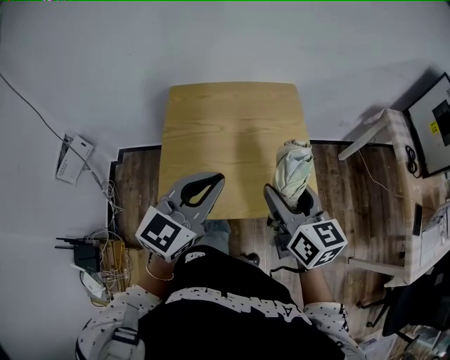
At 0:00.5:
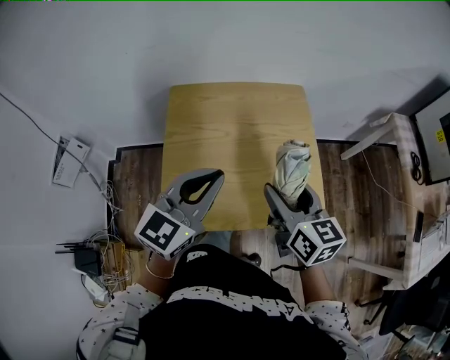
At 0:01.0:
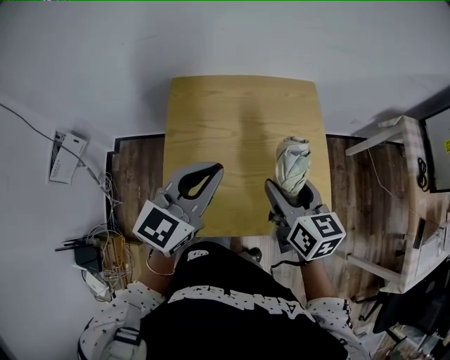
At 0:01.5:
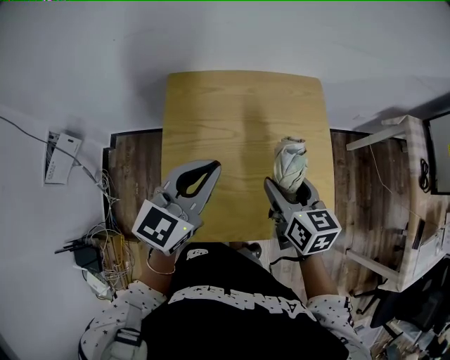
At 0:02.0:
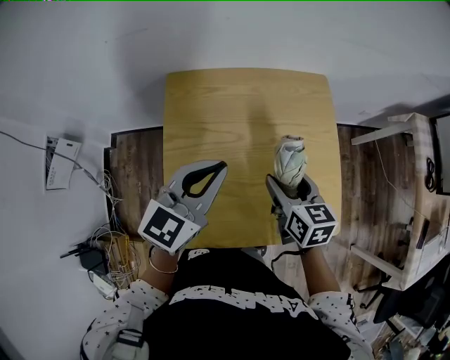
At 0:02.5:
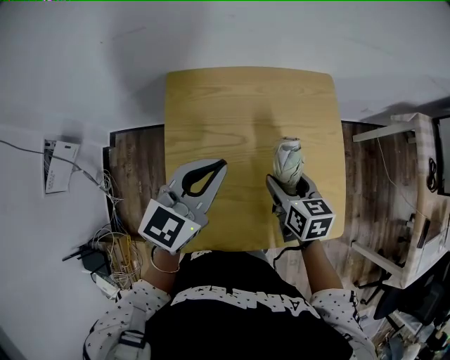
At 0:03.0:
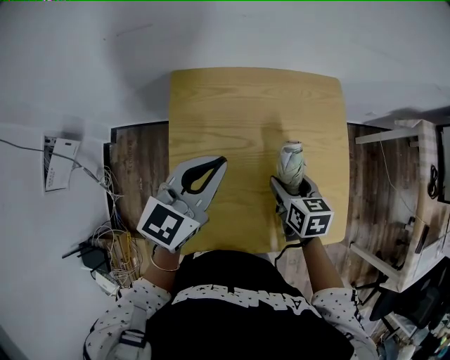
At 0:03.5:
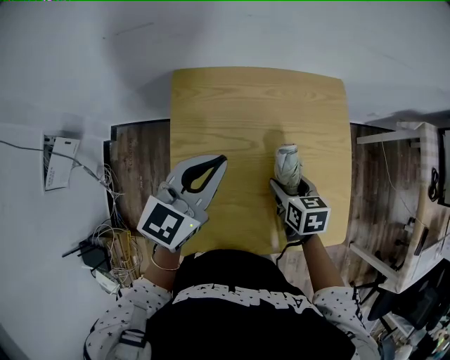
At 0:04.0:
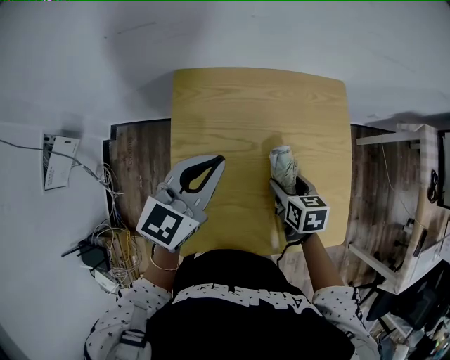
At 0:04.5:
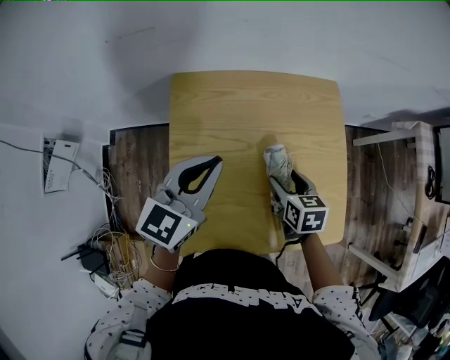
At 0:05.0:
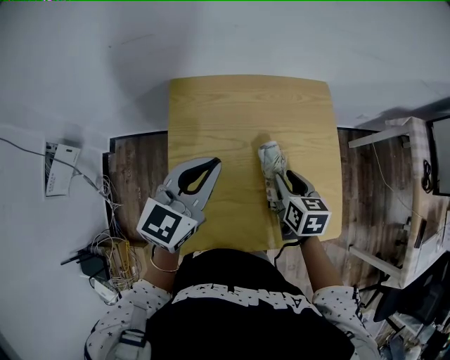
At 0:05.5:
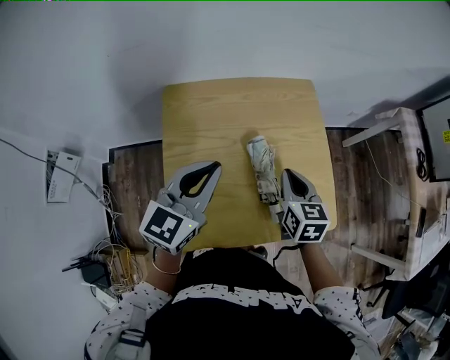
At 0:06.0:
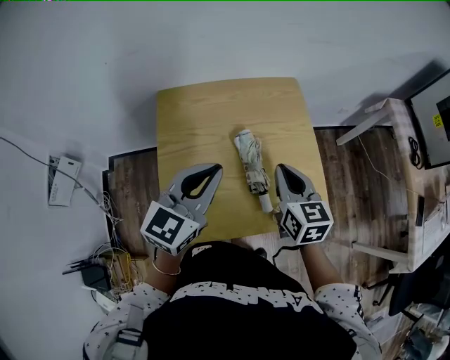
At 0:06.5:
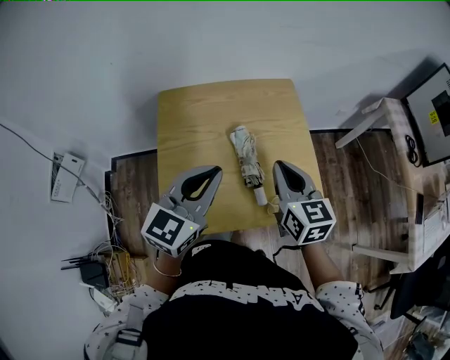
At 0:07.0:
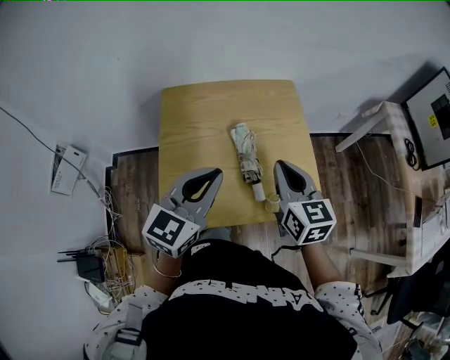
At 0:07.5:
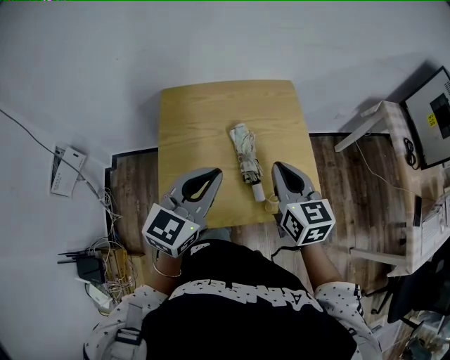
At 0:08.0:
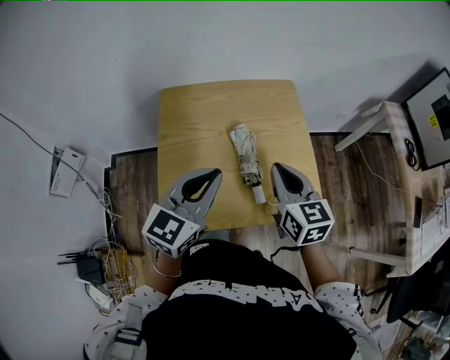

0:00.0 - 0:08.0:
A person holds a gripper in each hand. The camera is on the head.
0:00.0 - 0:02.0: The left gripper goes some 20 cm forward, downward and to the left. Meanwhile the right gripper goes some 20 cm downward, forward and to the left, and changes its angle by some 20 degrees.
0:02.0 - 0:04.0: The left gripper moves forward and to the left, some 5 cm. The right gripper is displaced downward by some 10 cm.
0:04.0 - 0:06.0: The left gripper heads backward, to the right and upward, covering approximately 15 cm. The right gripper travels upward by some 15 cm, rotates approximately 30 degrees, and closes its fingers.
0:06.0 - 0:08.0: The left gripper changes place by approximately 5 cm. The right gripper moves roughly 5 cm.

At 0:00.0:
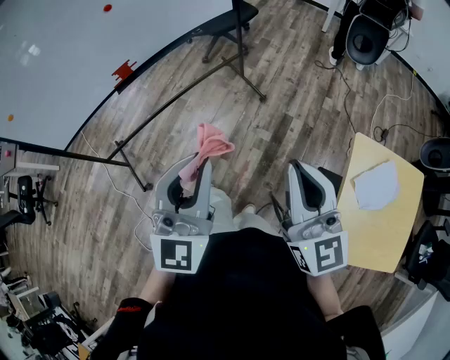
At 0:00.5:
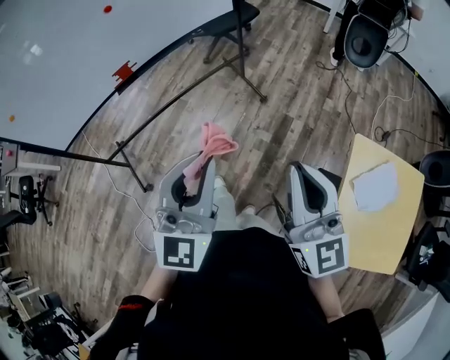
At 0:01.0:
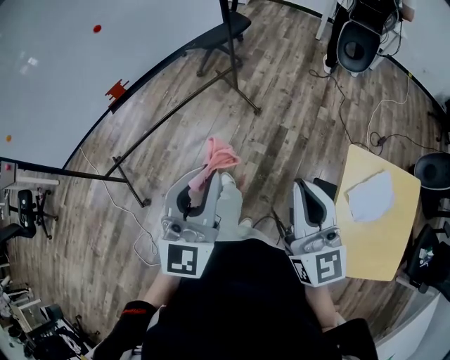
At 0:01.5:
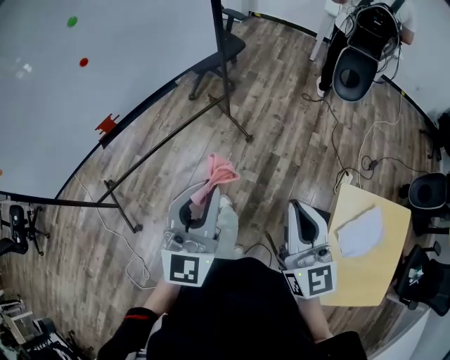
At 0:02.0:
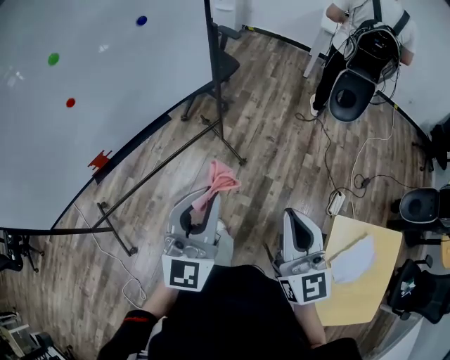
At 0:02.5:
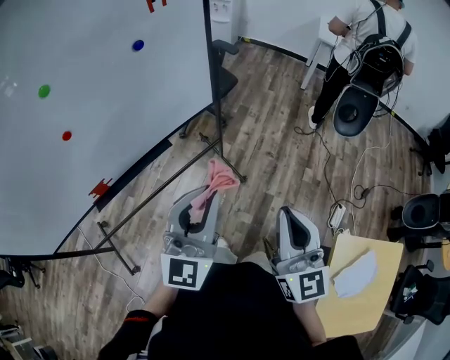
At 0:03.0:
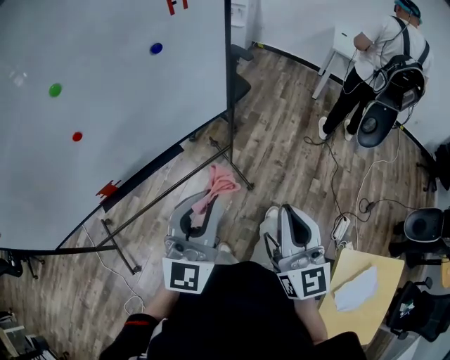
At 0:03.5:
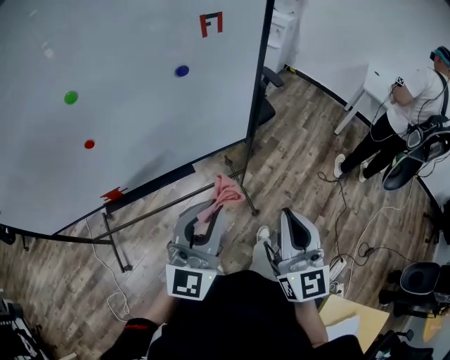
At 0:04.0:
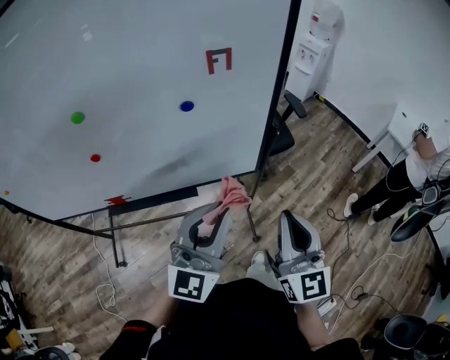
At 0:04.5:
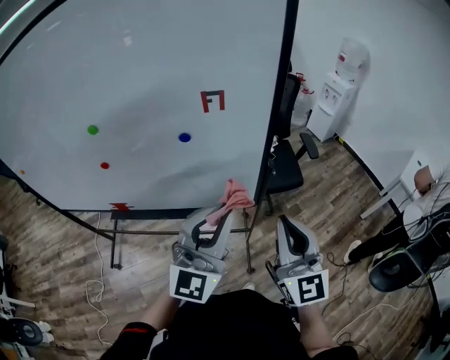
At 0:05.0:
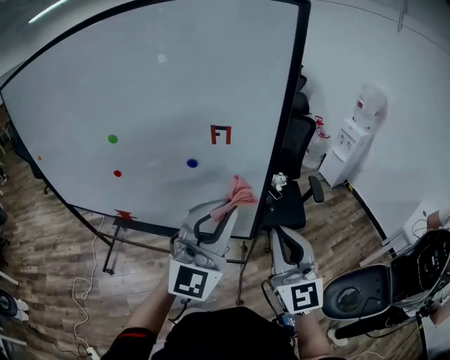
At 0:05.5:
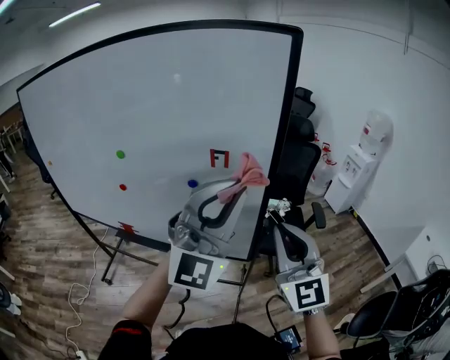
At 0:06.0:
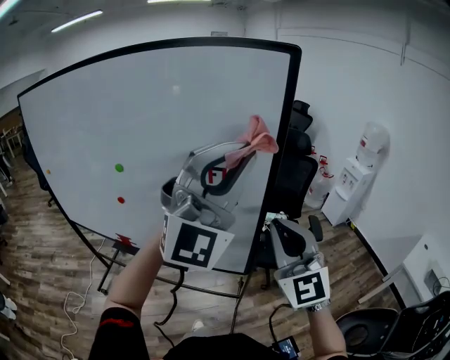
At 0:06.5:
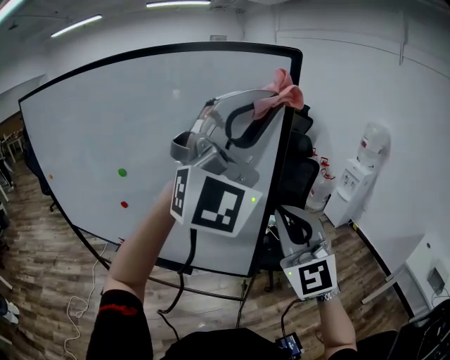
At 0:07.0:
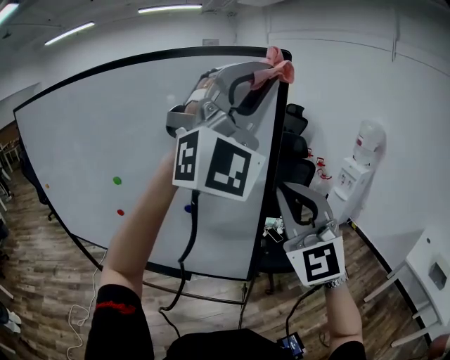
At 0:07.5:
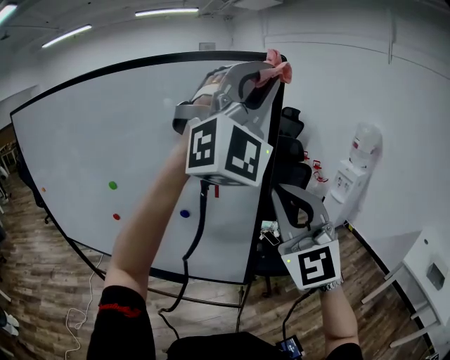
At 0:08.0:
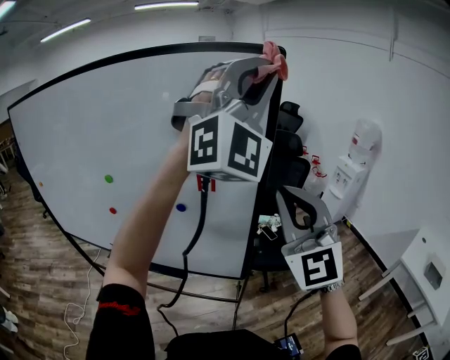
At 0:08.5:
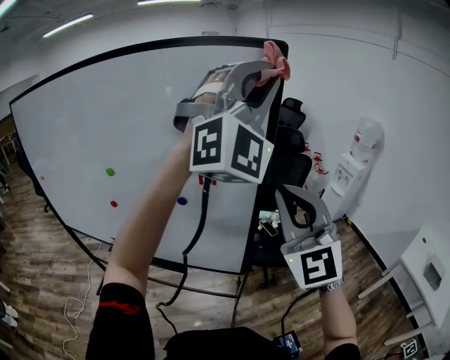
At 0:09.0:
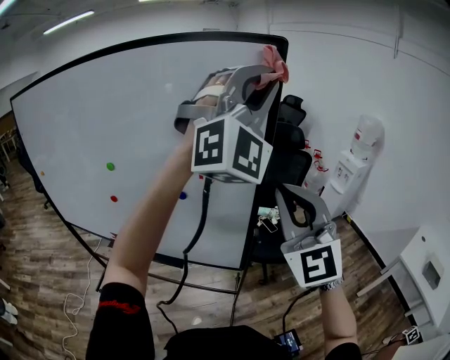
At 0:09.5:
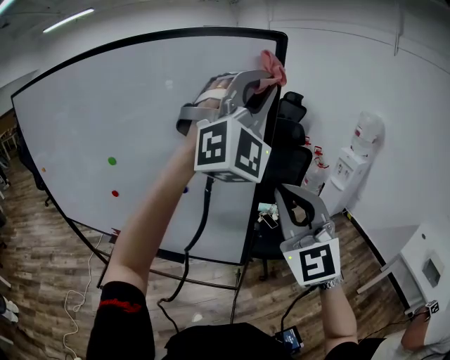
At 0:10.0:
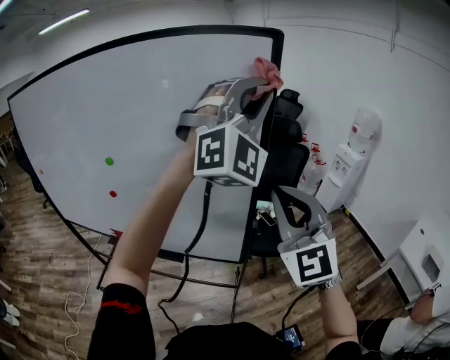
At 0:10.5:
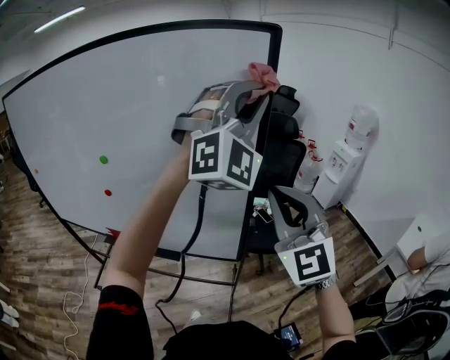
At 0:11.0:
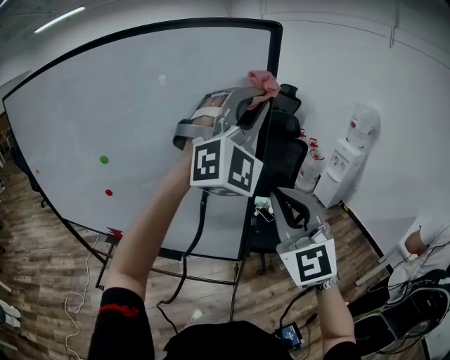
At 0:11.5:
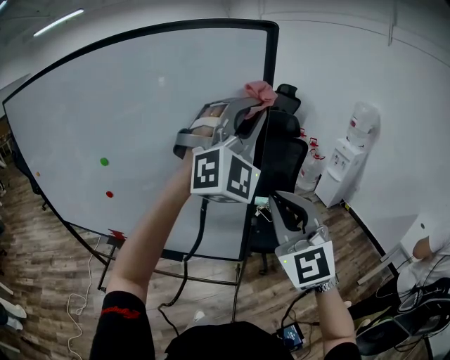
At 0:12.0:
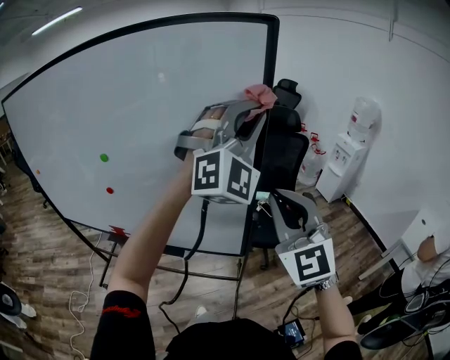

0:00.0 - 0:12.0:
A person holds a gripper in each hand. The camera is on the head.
0:00.0 - 0:02.0: Both grippers travel together forward, roughly 30 cm.
0:02.0 - 0:04.0: The two grippers go roughly 35 cm forward. The right gripper swivels about 30 degrees, while the left gripper turns by roughly 20 degrees.
0:04.0 - 0:06.0: The left gripper is displaced upward by roughly 30 cm, and rolls clockwise, seen from behind, by roughly 40 degrees, while the right gripper is displaced upward and forward by approximately 20 cm, and changes its angle by approximately 40 degrees.
0:06.0 - 0:08.0: The right gripper travels upward by approximately 10 cm; the left gripper travels upward and forward by about 15 cm.
0:08.0 - 0:10.0: The left gripper goes about 5 cm downward.
0:10.0 - 0:12.0: The left gripper goes roughly 5 cm downward.

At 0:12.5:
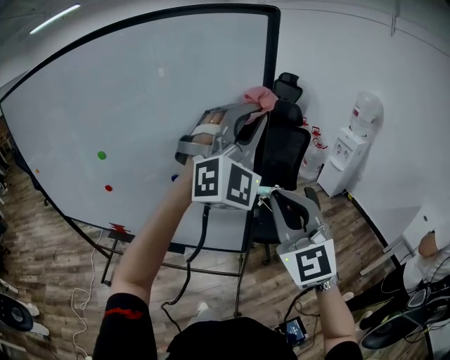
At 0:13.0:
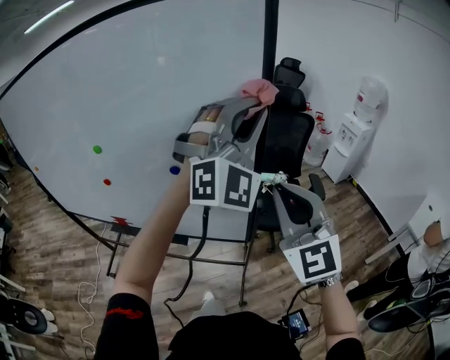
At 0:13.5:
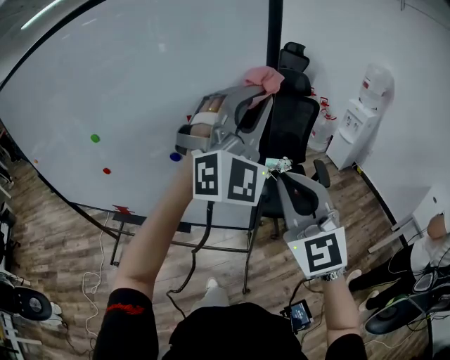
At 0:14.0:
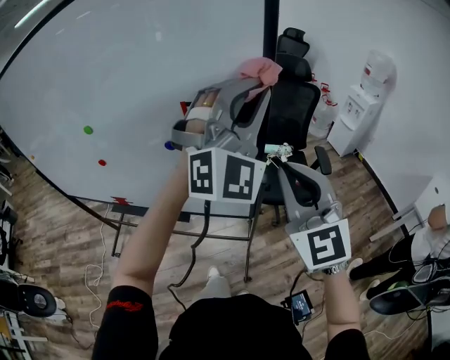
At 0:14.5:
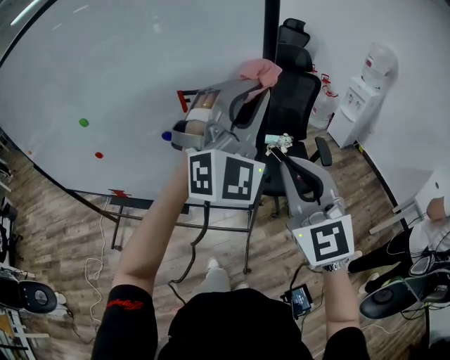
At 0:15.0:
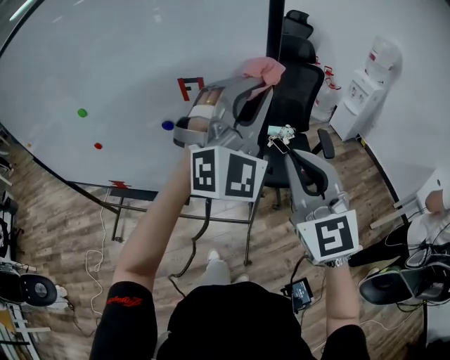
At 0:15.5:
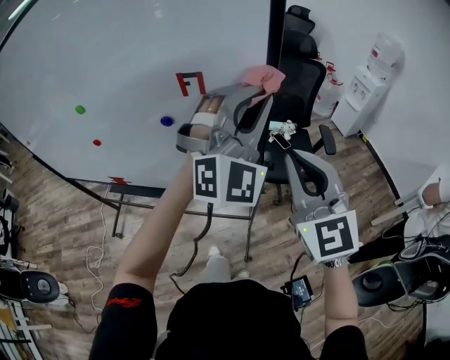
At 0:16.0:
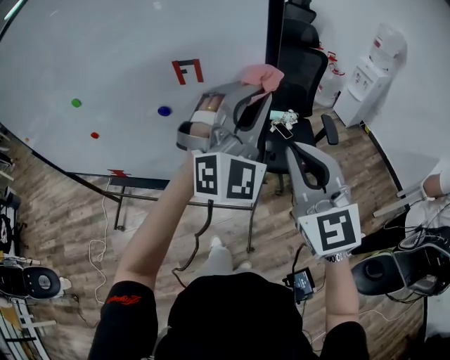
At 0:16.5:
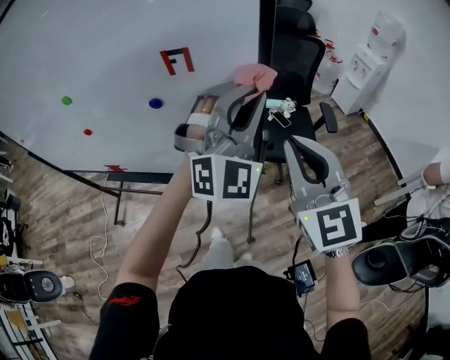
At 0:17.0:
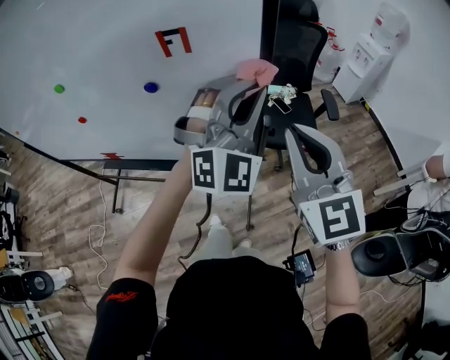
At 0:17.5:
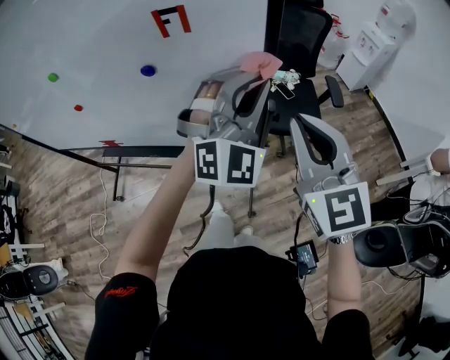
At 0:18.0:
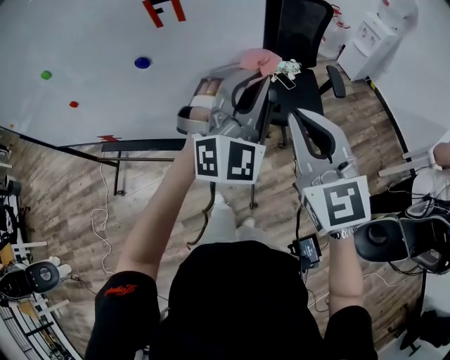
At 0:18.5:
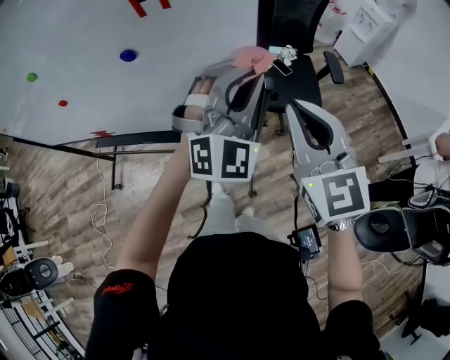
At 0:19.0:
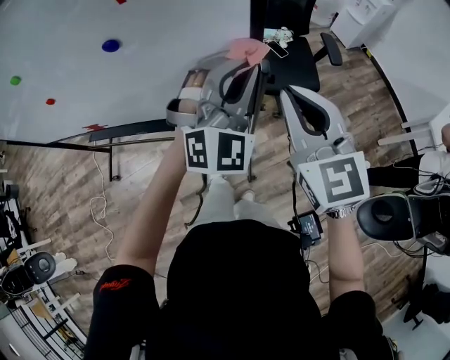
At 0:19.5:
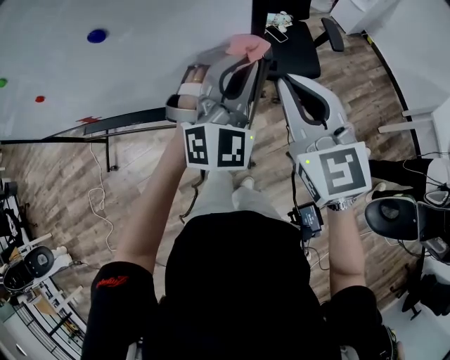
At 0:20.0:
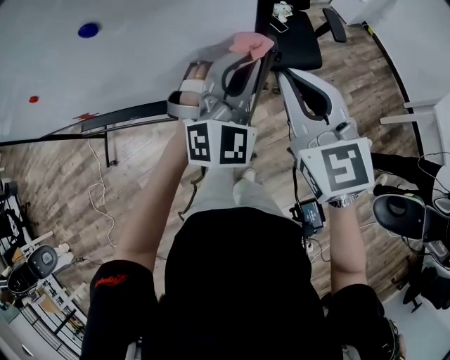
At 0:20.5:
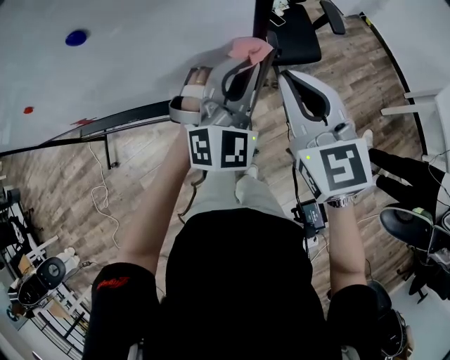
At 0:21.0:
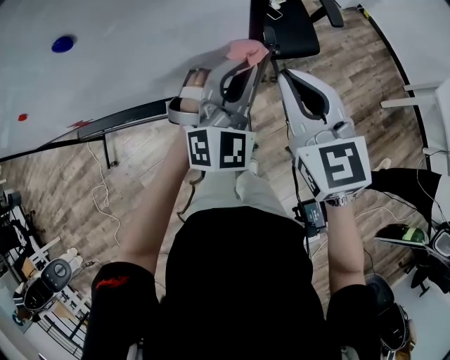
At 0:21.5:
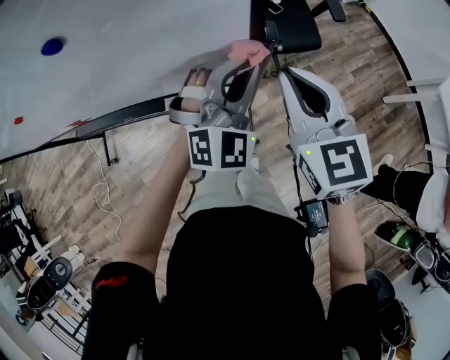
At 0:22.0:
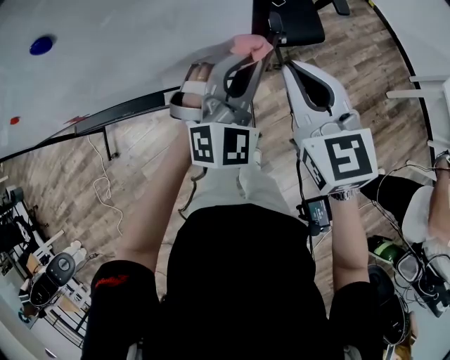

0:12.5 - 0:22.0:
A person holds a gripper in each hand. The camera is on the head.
0:12.5 - 0:14.5: The left gripper moves downward, about 10 cm. Meanwhile the right gripper shifts by some 5 cm.
0:14.5 - 0:16.5: The left gripper shifts approximately 10 cm downward.
0:16.5 - 0:18.0: The left gripper goes roughly 10 cm downward.
0:18.0 - 0:20.0: The grippers both shift downward by approximately 10 cm.
0:20.0 - 0:22.0: The right gripper heads downward and forward, covering roughly 10 cm. Meanwhile the left gripper goes about 5 cm downward.
